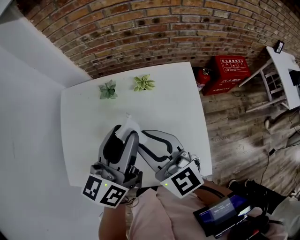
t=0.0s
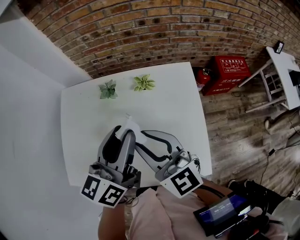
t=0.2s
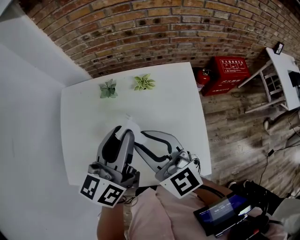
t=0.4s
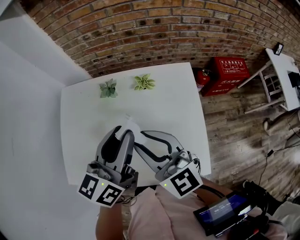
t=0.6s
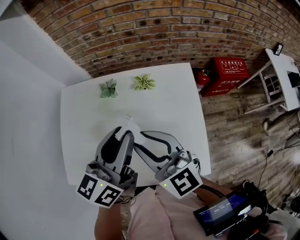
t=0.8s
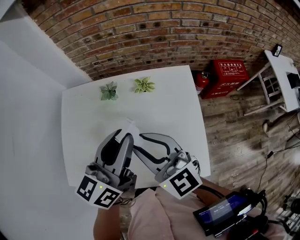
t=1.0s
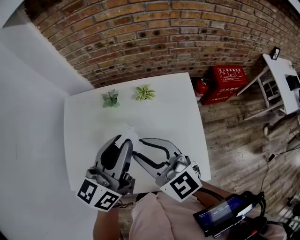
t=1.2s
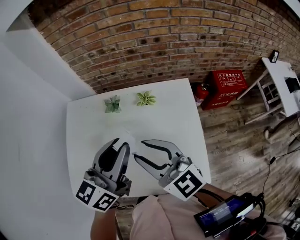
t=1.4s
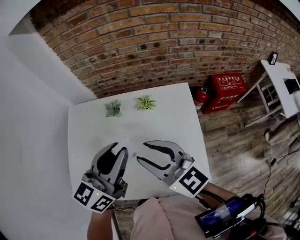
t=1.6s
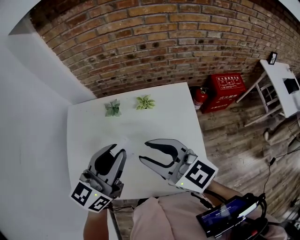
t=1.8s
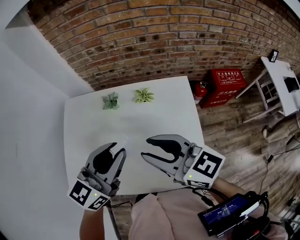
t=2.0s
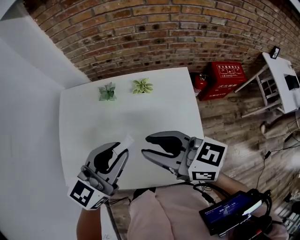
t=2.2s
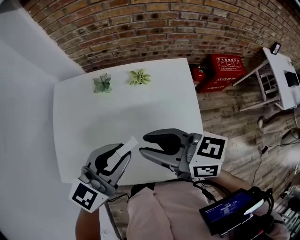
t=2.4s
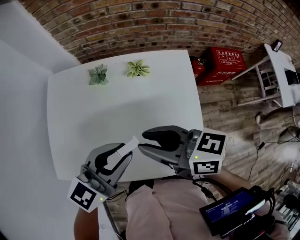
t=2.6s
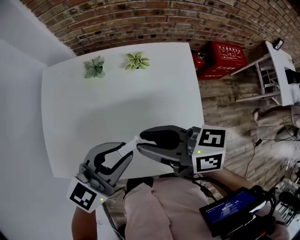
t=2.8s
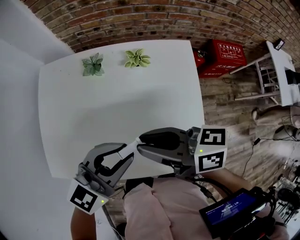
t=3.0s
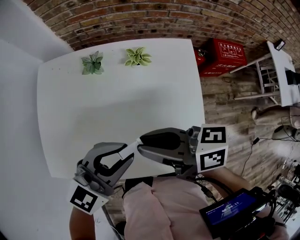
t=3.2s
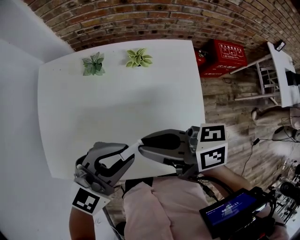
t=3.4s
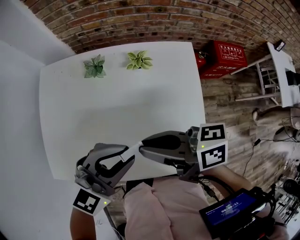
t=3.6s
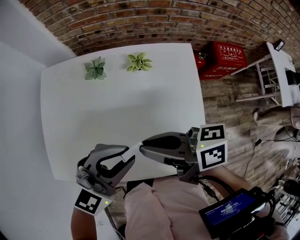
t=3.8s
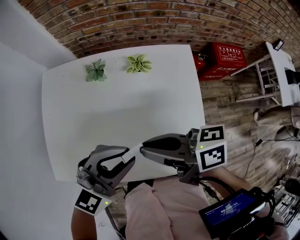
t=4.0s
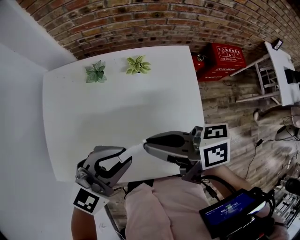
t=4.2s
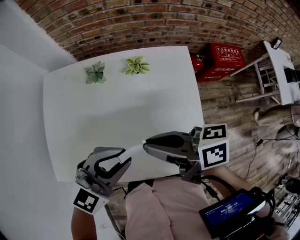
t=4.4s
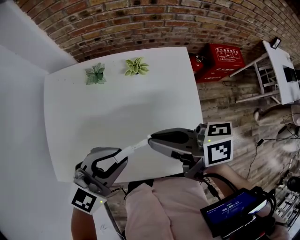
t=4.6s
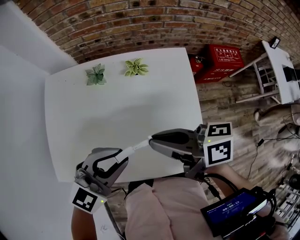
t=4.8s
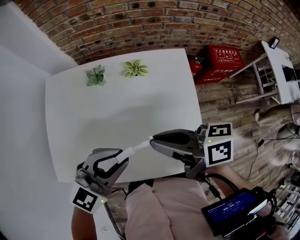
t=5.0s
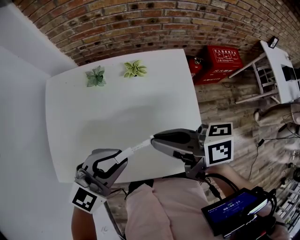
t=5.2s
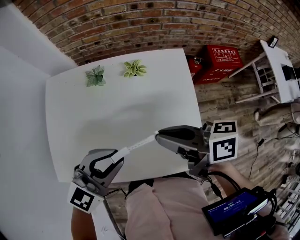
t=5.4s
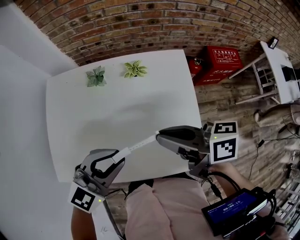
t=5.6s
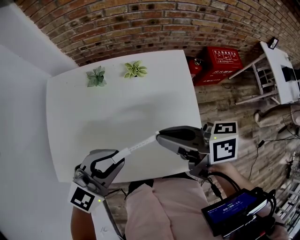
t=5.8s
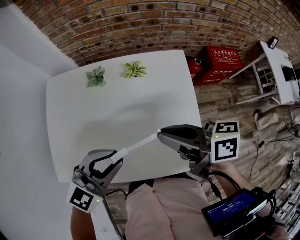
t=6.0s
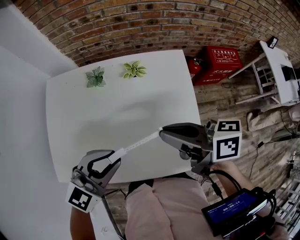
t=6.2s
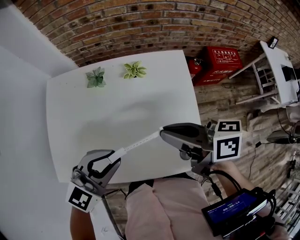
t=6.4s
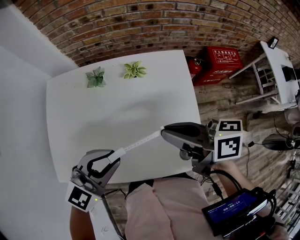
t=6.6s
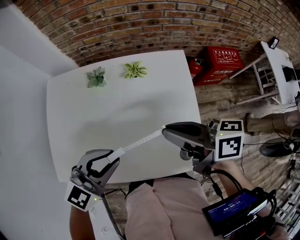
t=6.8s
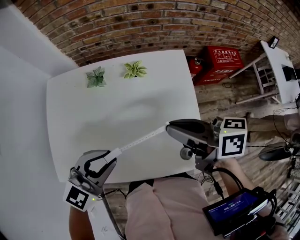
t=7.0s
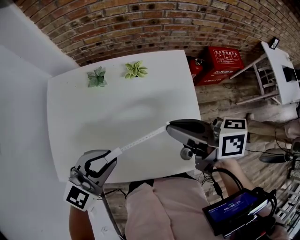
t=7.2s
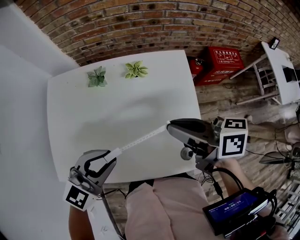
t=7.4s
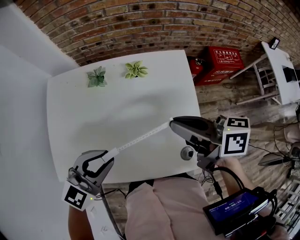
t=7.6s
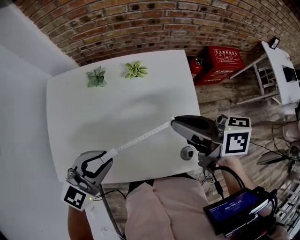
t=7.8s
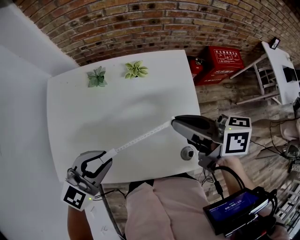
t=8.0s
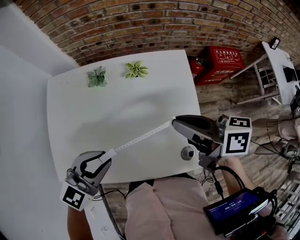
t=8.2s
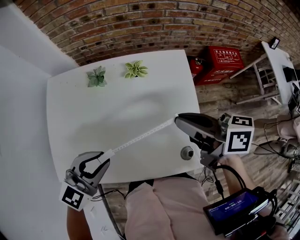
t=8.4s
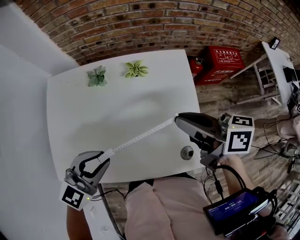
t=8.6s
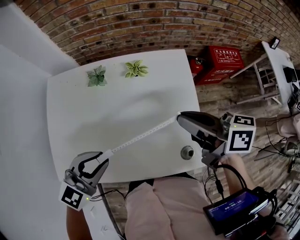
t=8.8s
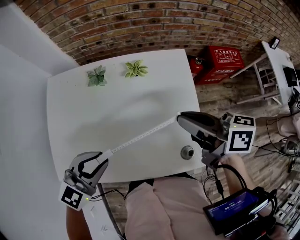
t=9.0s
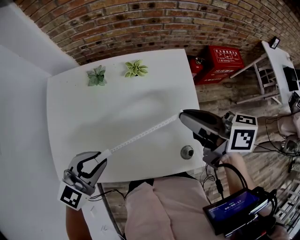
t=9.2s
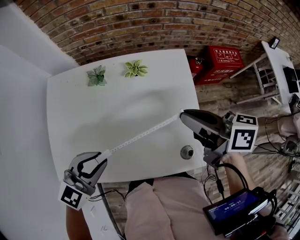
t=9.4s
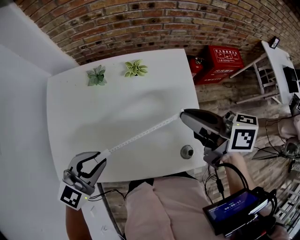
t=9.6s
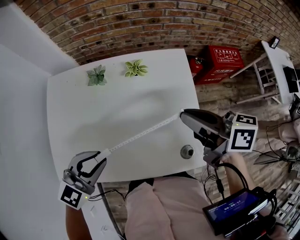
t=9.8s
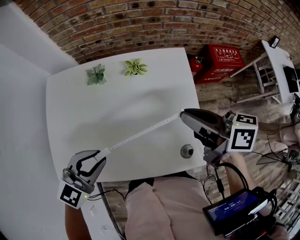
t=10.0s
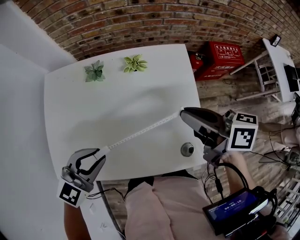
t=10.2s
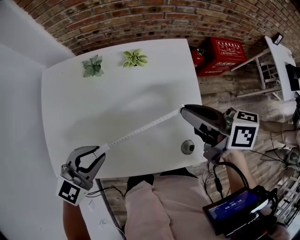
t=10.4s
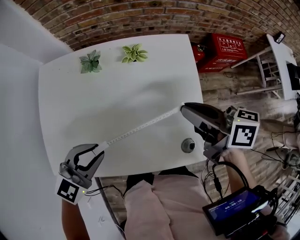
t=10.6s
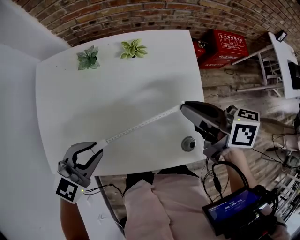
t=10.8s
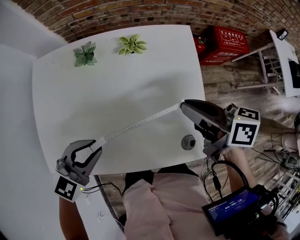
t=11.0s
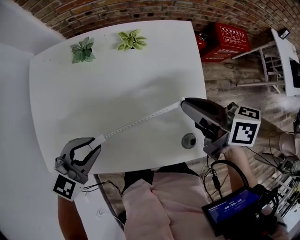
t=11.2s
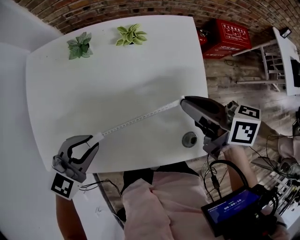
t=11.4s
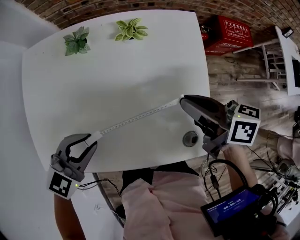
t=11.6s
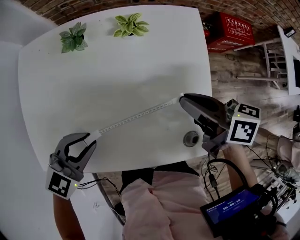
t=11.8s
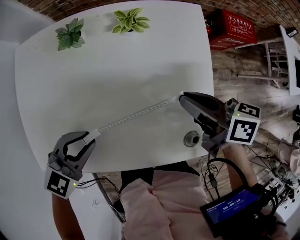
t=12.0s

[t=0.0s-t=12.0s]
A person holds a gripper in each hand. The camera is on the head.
t=0.0s to t=1.6s: The left gripper closes its fingers.
t=1.6s to t=3.0s: The left gripper goes roughly 10 cm downward and backward, and turns by some 30 degrees. Meanwhile the right gripper shifts some 10 cm downward, and rolls clockwise, seen from behind, by some 50 degrees.
t=3.0s to t=4.4s: The grippers move only a little.
t=4.4s to t=6.0s: The right gripper changes place by approximately 5 cm.
t=6.0s to t=7.6s: The grippers make only small movements.
t=7.6s to t=10.4s: The grippers make only small movements.
t=10.4s to t=12.0s: Both grippers travel together downward, roughly 10 cm.

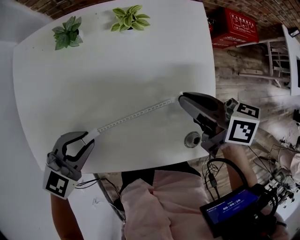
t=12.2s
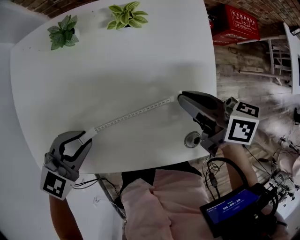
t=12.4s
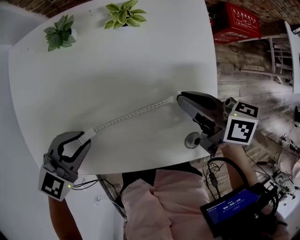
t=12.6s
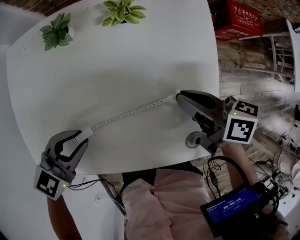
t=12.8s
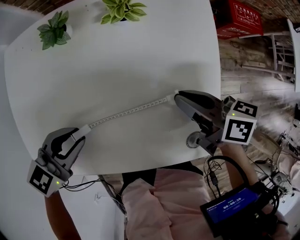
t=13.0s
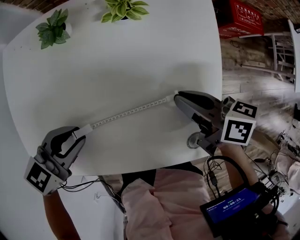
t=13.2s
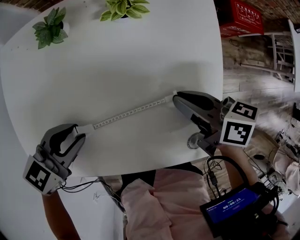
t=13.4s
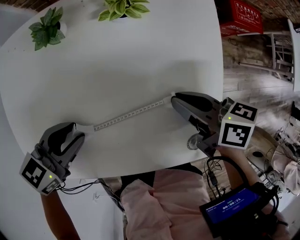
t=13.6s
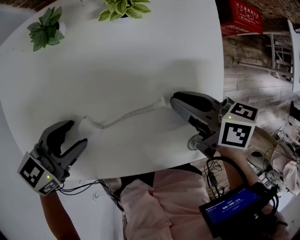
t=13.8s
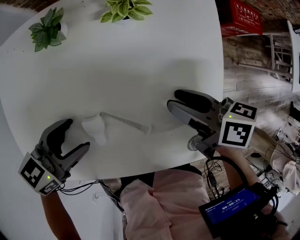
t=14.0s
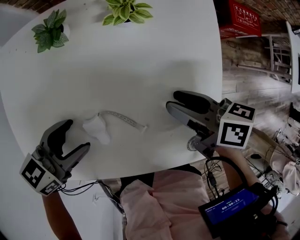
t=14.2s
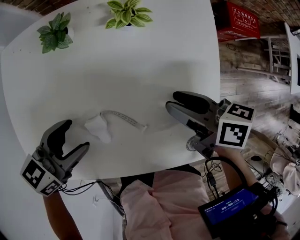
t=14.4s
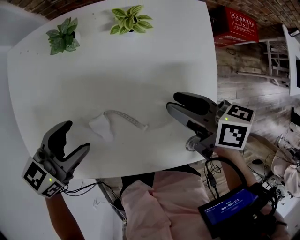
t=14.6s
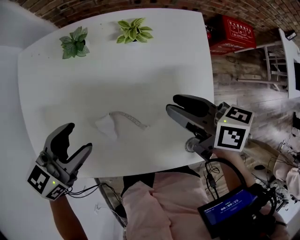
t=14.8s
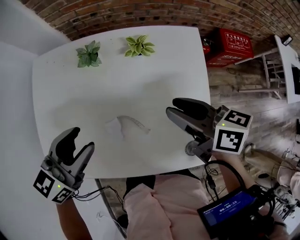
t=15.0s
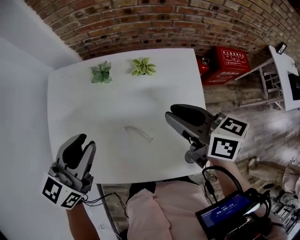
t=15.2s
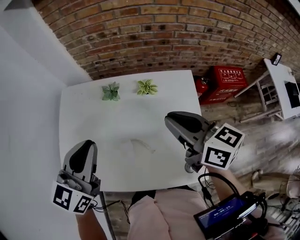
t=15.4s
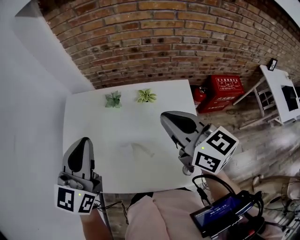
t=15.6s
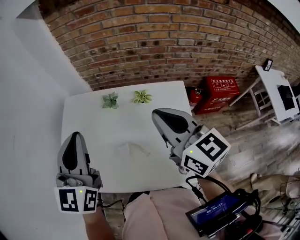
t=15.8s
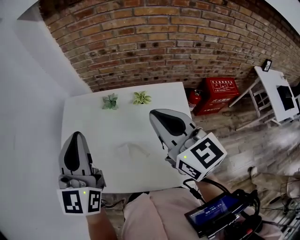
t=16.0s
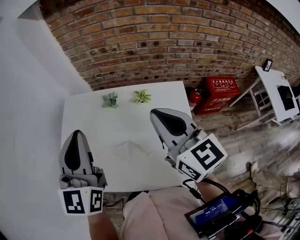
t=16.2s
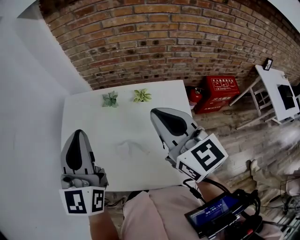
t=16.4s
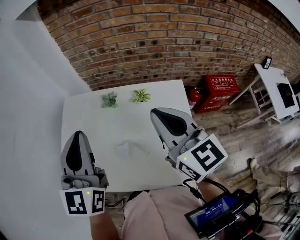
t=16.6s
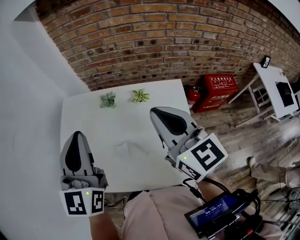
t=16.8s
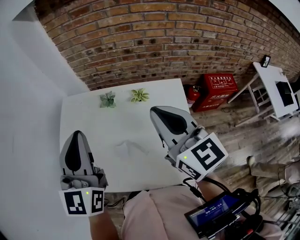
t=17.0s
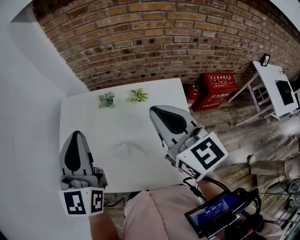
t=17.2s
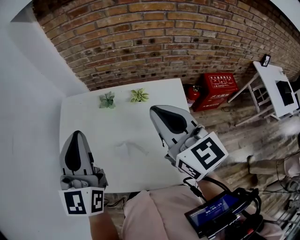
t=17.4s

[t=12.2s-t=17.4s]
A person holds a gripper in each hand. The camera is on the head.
t=12.2s to t=14.0s: The right gripper is displaced downward by about 5 cm, and opens up, while the left gripper ends up about 5 cm from where it was, swivels some 30 degrees, and opens its fingers.
t=14.0s to t=15.6s: The grippers both shift upward by roughly 30 cm. The right gripper rotates about 50 degrees, and closes; the left gripper angles its fingers upward, by some 30 degrees, and closes up.
t=15.6s to t=17.4s: The grippers move only a little.

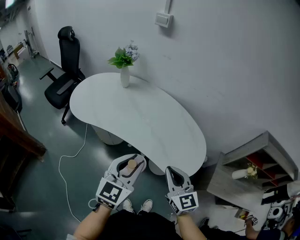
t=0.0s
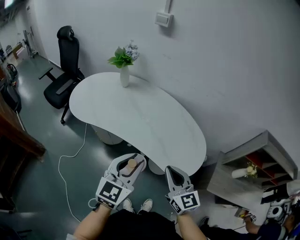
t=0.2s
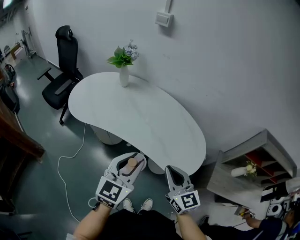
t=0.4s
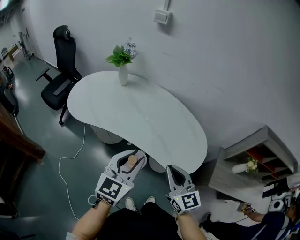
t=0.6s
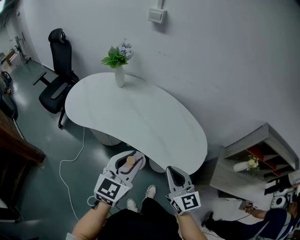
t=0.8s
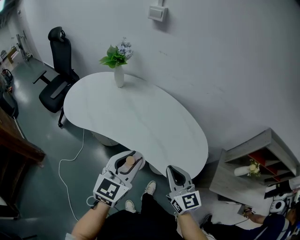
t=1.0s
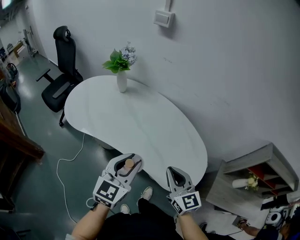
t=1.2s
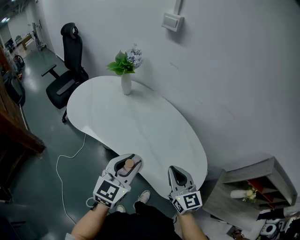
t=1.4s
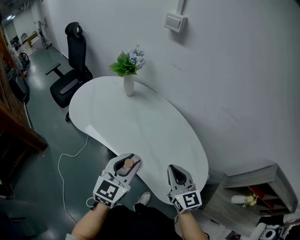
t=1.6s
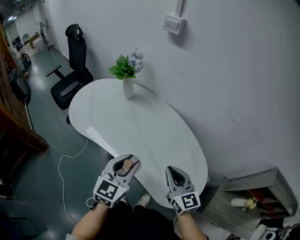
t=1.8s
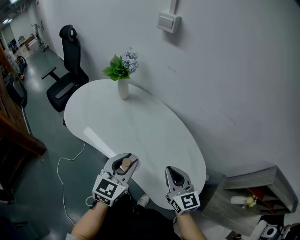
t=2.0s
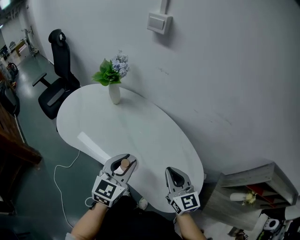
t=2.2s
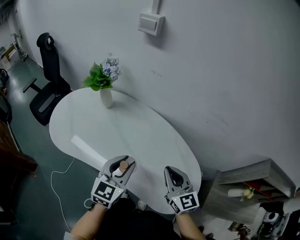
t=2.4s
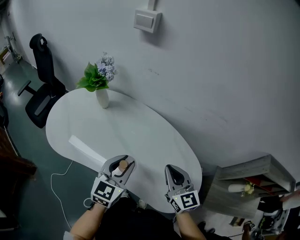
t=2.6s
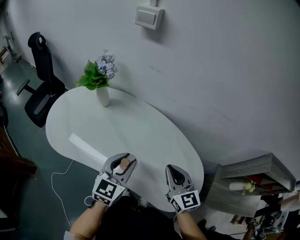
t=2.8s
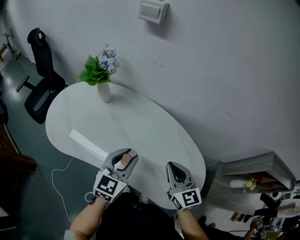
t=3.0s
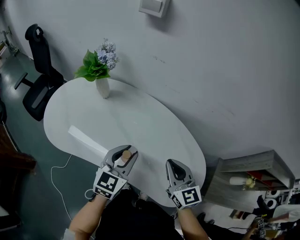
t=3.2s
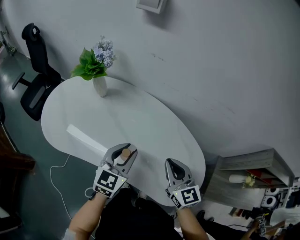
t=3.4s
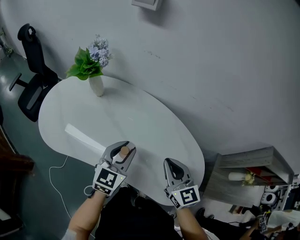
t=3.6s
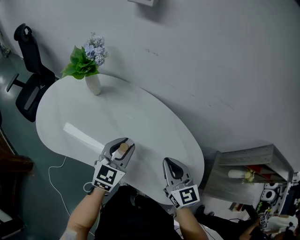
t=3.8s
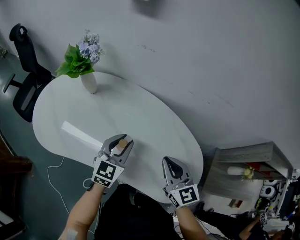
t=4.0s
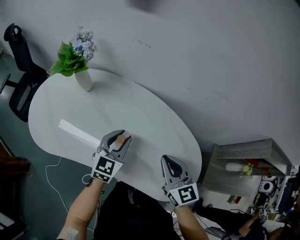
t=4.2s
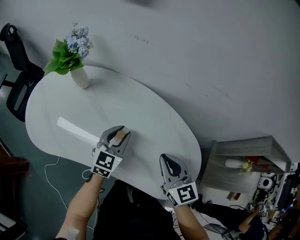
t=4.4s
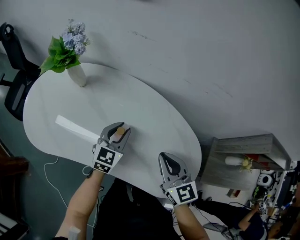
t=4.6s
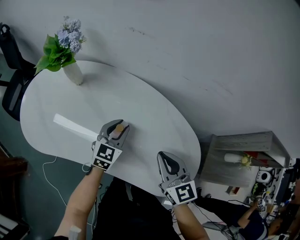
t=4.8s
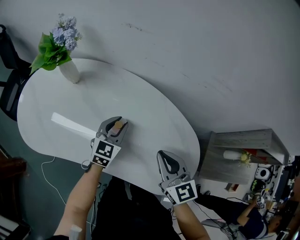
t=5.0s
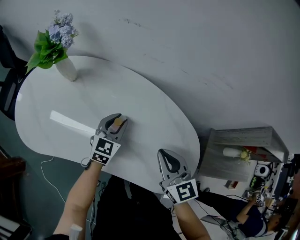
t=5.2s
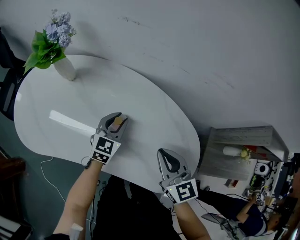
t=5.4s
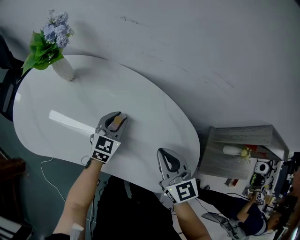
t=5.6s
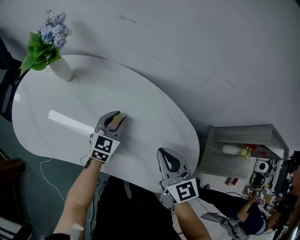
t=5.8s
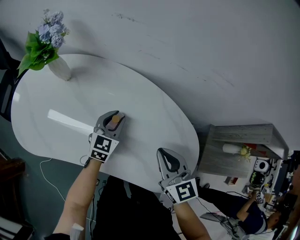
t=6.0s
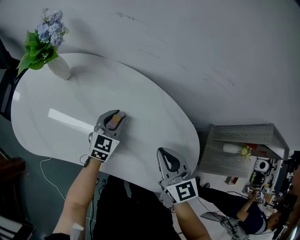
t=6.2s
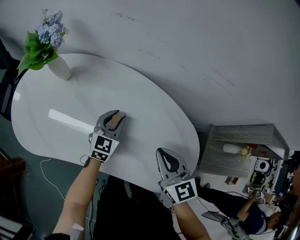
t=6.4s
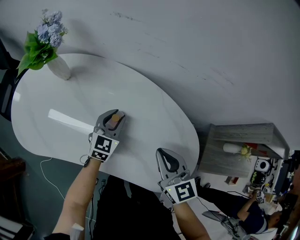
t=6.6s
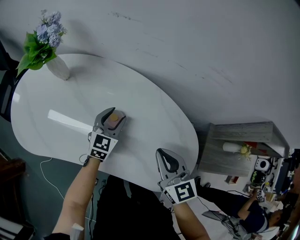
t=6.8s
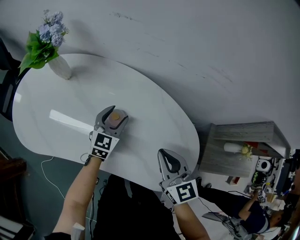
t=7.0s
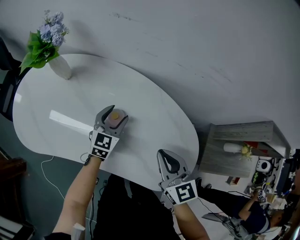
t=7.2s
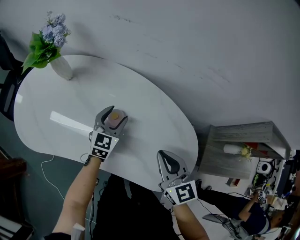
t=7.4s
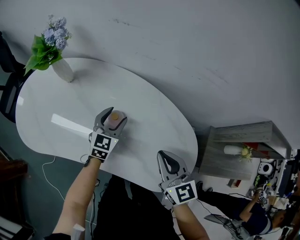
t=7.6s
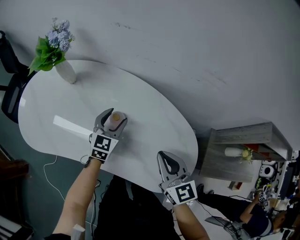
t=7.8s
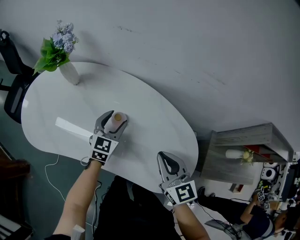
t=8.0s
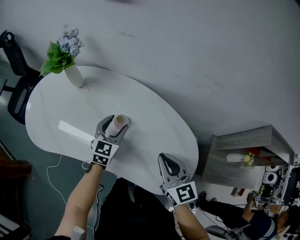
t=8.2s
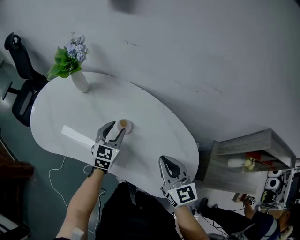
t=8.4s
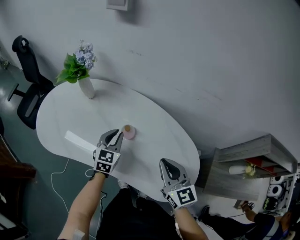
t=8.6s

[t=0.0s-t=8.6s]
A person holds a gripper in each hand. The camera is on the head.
t=0.0s to t=1.4s: Both grippers travel together forward, some 15 cm.
t=1.4s to t=2.8s: The two grippers go some 15 cm forward.
t=2.8s to t=4.4s: The left gripper travels downward and forward by roughly 15 cm.
t=4.4s to t=5.8s: The left gripper goes some 5 cm downward.
t=5.8s to t=7.2s: The left gripper opens its fingers.
t=7.2s to t=8.6s: The left gripper shifts roughly 10 cm upward and backward, and closes its fingers, while the right gripper moves approximately 5 cm.
